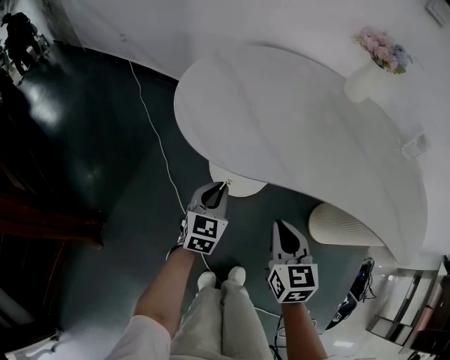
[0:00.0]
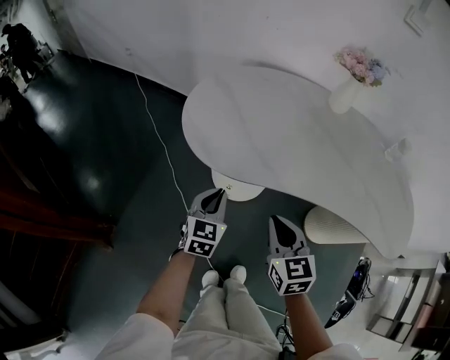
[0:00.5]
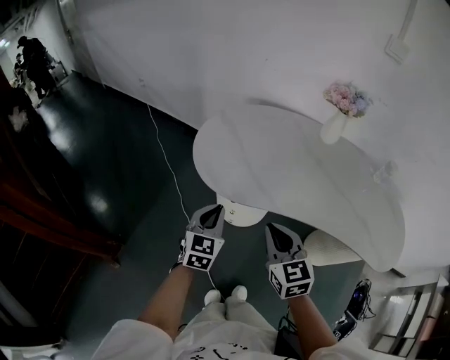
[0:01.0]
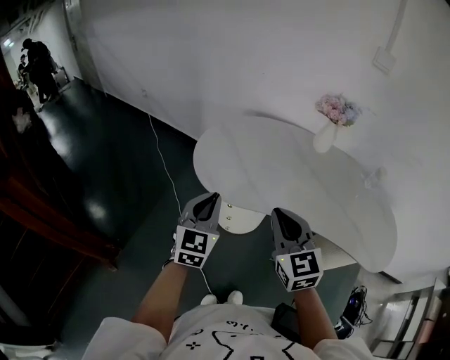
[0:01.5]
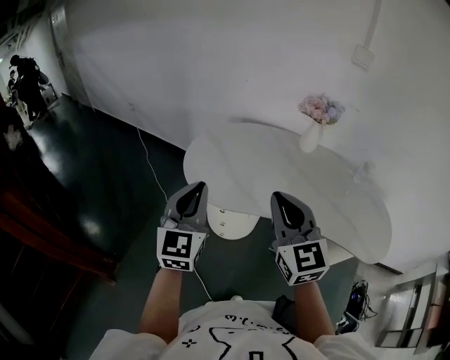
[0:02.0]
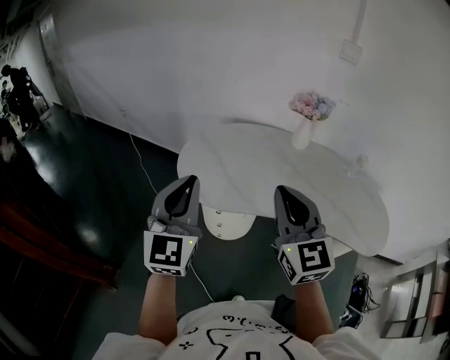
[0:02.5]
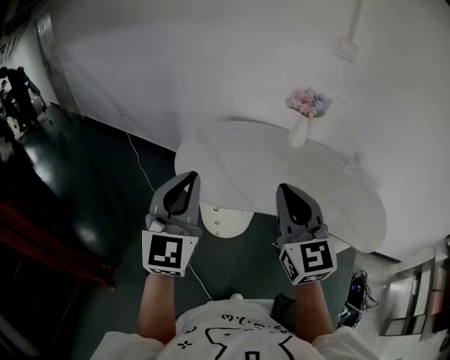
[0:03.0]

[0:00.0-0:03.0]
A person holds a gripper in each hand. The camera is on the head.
0.0 to 1.5 s: The grippers both shift upward by approximately 30 cm. The right gripper changes its angle by roughly 20 degrees.
1.5 to 3.0 s: The two grippers go some 15 cm upward.

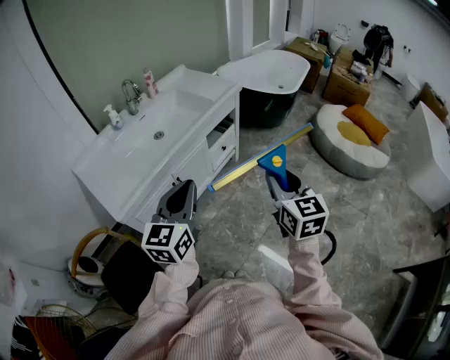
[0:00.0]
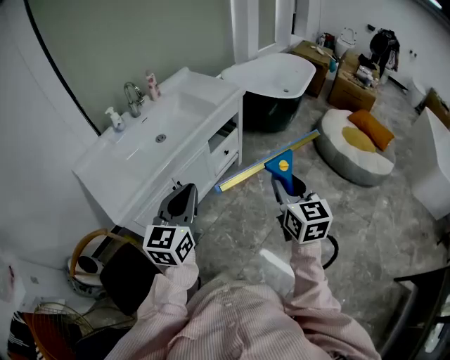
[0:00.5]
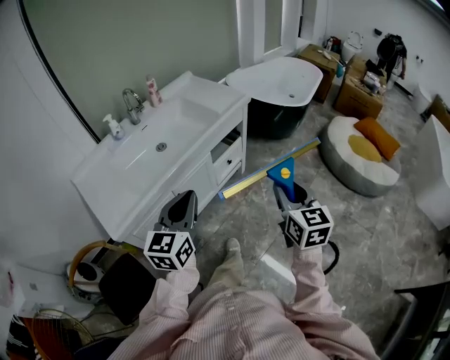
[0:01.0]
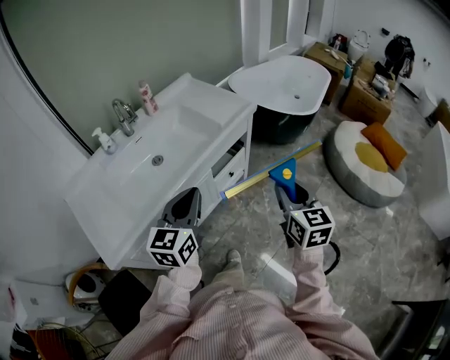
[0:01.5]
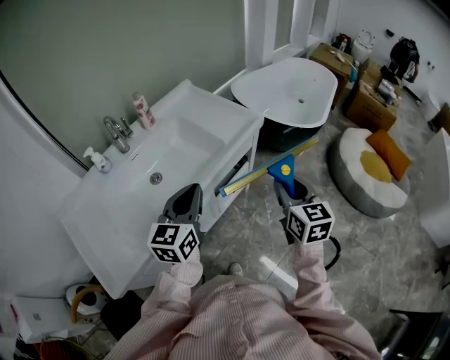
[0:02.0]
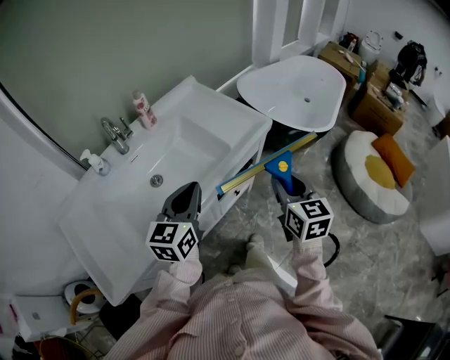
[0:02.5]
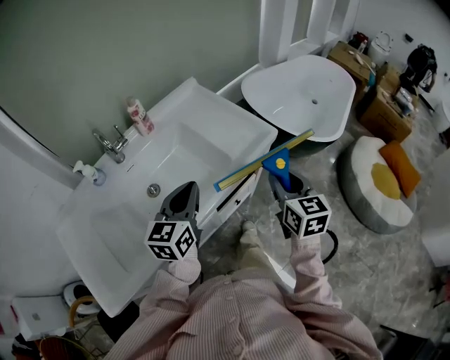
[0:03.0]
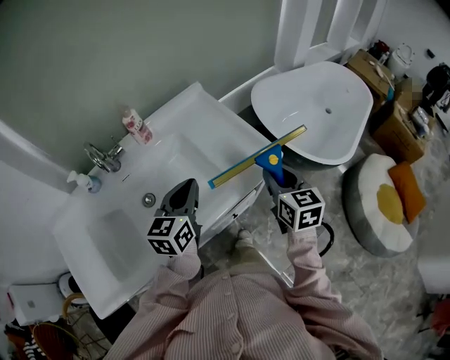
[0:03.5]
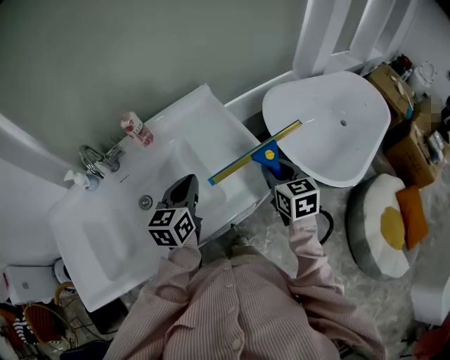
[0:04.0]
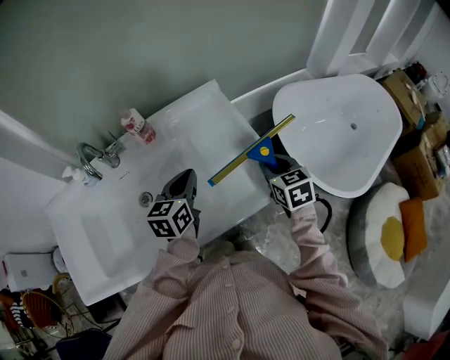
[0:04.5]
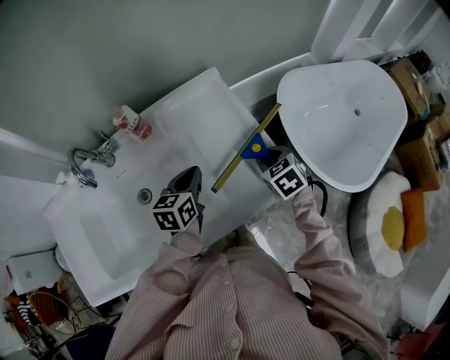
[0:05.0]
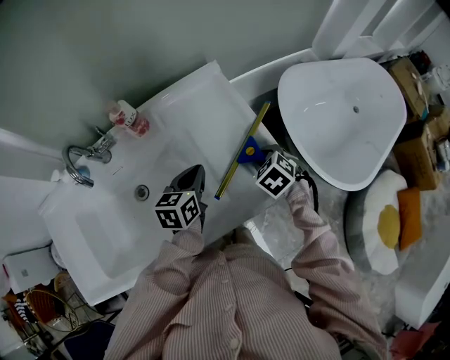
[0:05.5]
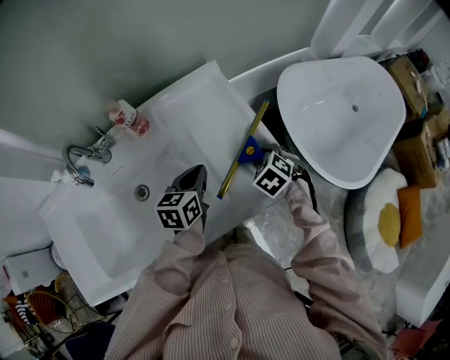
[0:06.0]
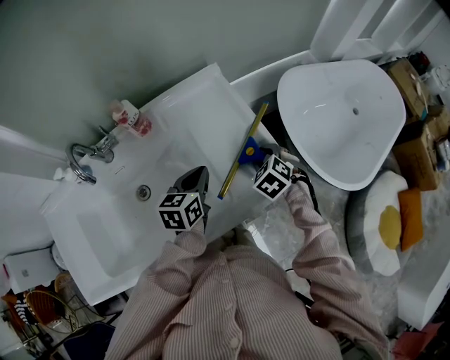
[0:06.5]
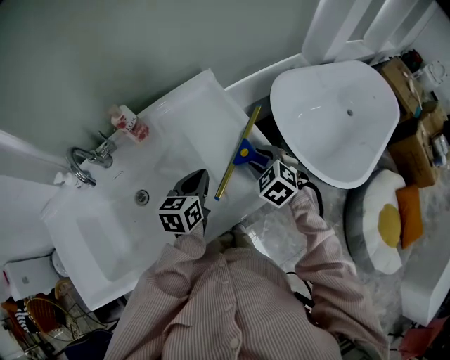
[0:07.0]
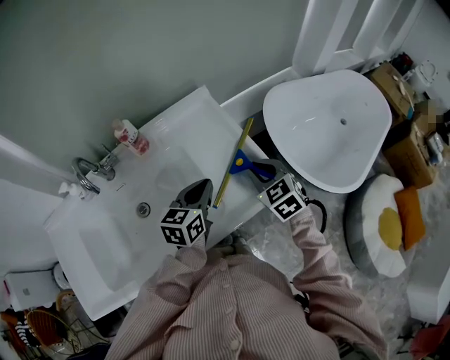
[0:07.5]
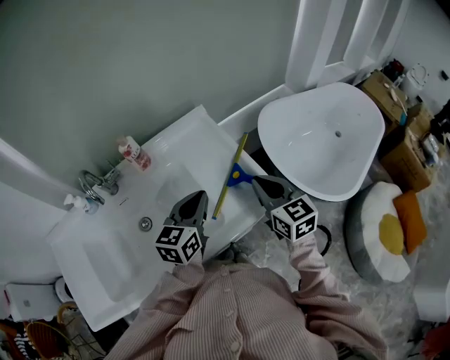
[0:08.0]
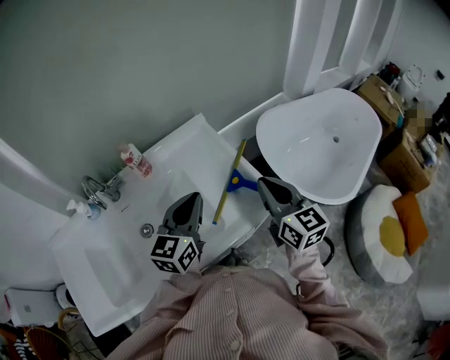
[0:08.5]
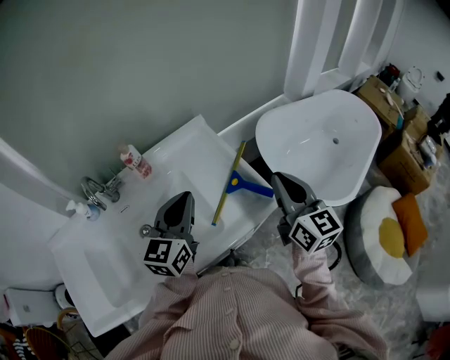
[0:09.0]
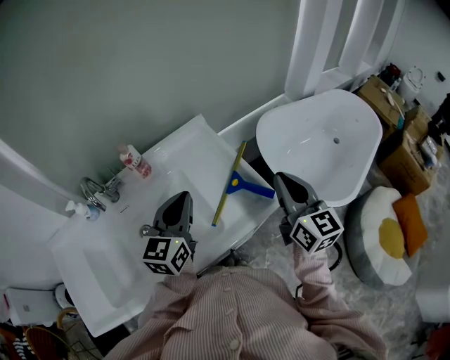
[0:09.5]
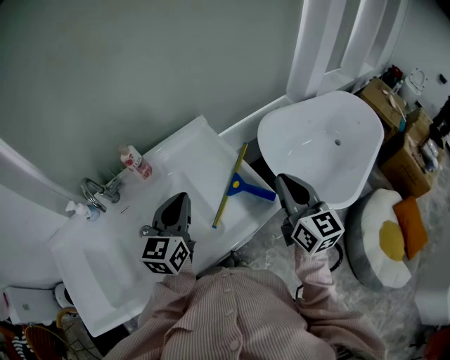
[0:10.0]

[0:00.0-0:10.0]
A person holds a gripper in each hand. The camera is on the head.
0.0 to 2.0 s: Both grippers travel together forward, approximately 35 cm.
2.0 to 4.0 s: The grippers both shift forward by about 35 cm. The right gripper turns by some 30 degrees, while the left gripper rotates some 20 degrees.
4.0 to 6.0 s: Both grippers move downward and forward, approximately 15 cm. The right gripper tilts its fingers approximately 40 degrees downward.
6.0 to 8.0 s: The right gripper moves upward, some 20 cm, tips its fingers upward by some 50 degrees, and closes its fingers. Meanwhile the left gripper goes approximately 15 cm upward and backward, and changes its angle by about 20 degrees.
8.0 to 10.0 s: The right gripper goes some 10 cm upward and to the right; the left gripper is displaced upward by about 5 cm.

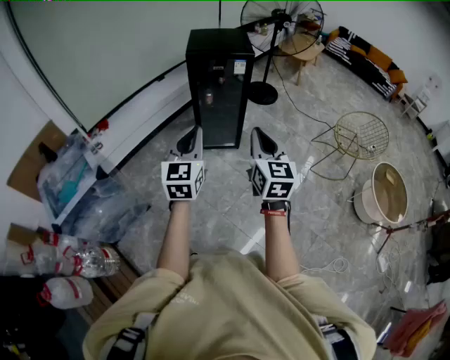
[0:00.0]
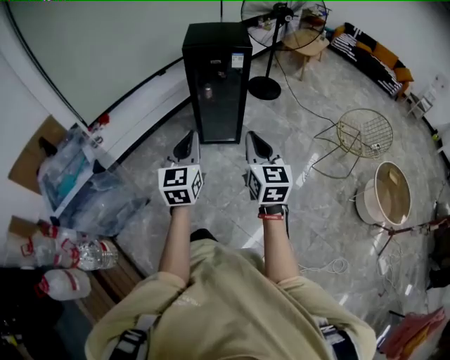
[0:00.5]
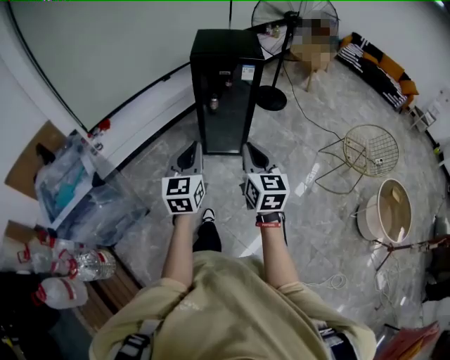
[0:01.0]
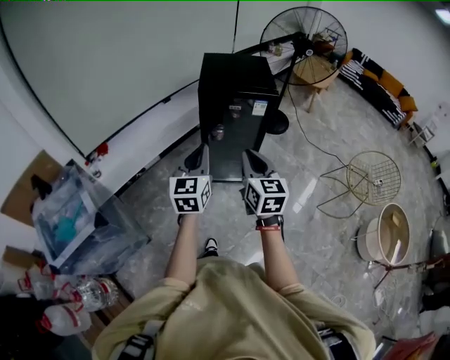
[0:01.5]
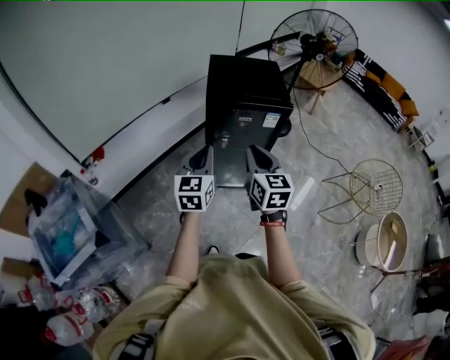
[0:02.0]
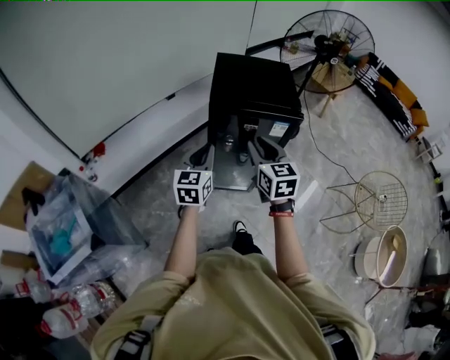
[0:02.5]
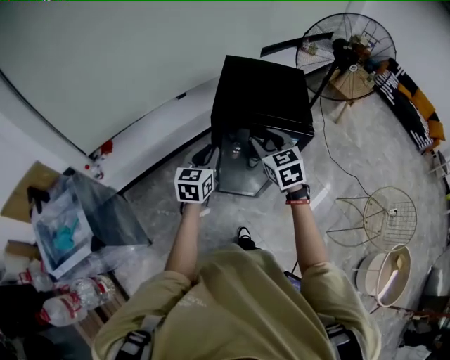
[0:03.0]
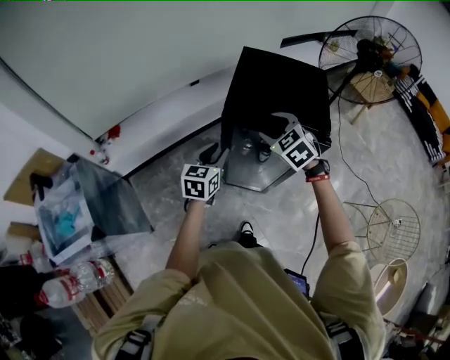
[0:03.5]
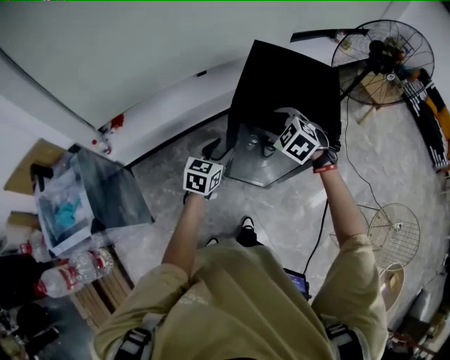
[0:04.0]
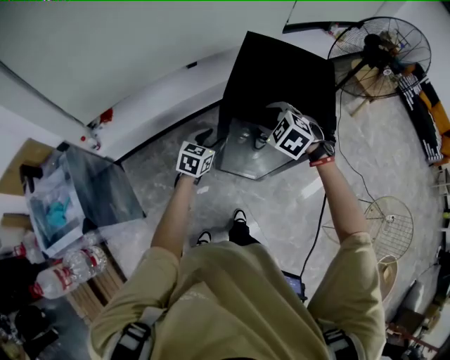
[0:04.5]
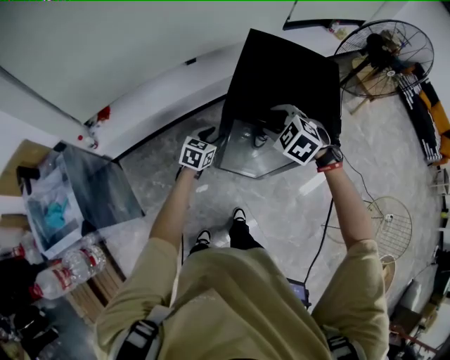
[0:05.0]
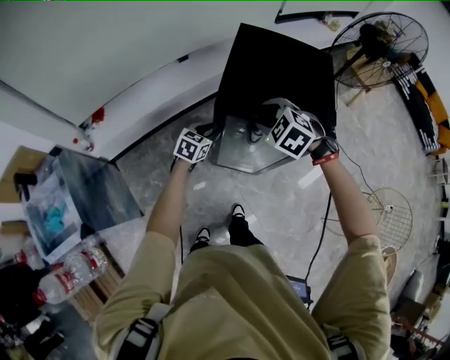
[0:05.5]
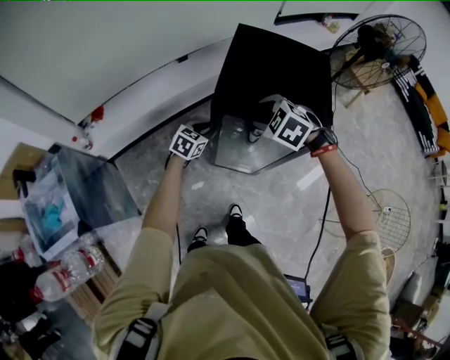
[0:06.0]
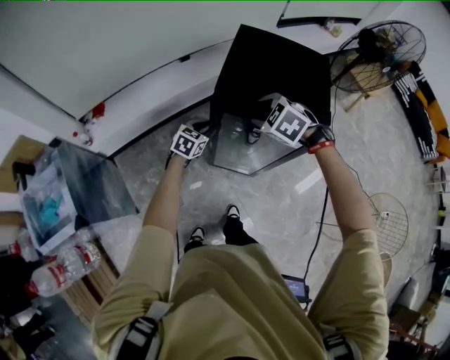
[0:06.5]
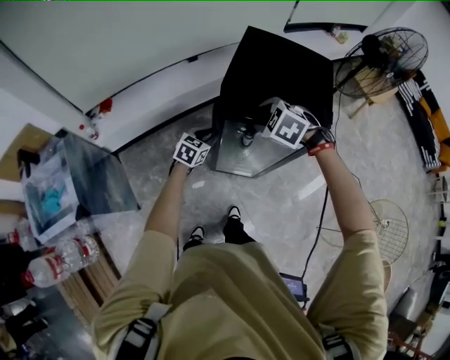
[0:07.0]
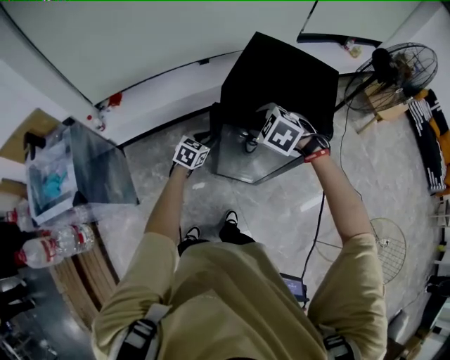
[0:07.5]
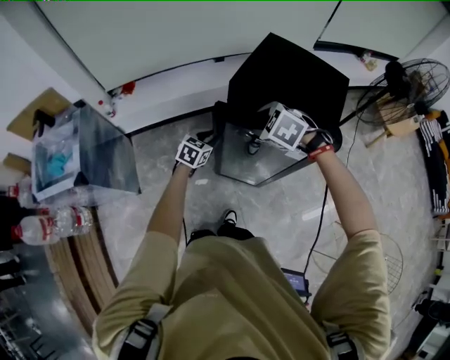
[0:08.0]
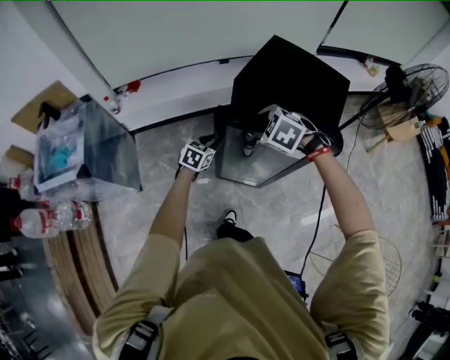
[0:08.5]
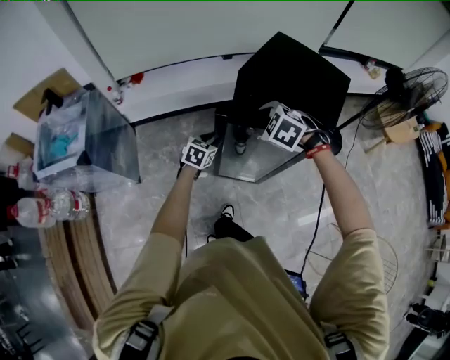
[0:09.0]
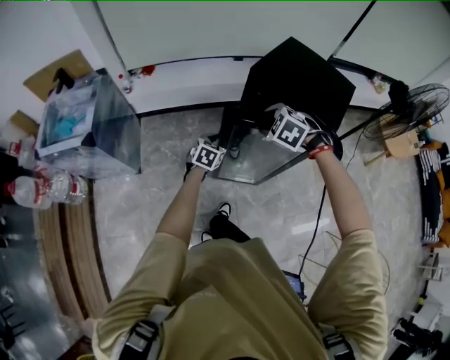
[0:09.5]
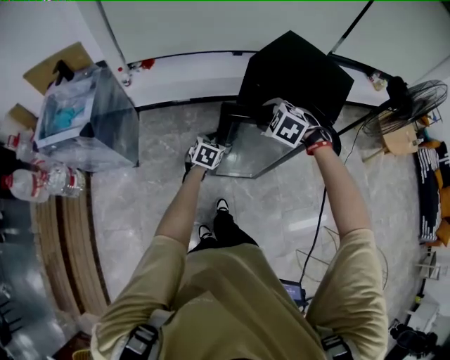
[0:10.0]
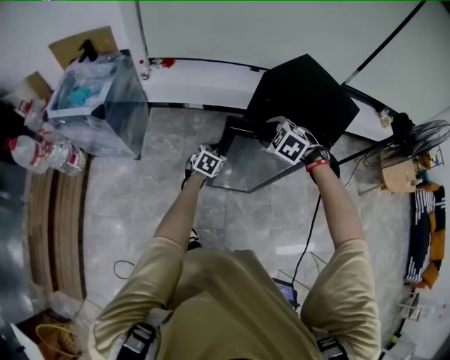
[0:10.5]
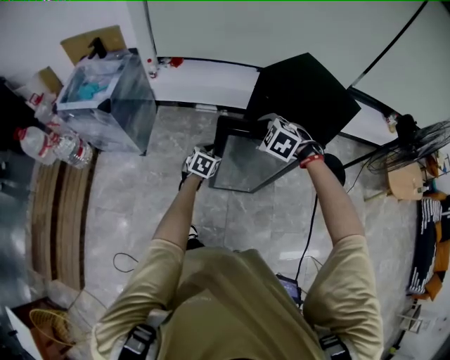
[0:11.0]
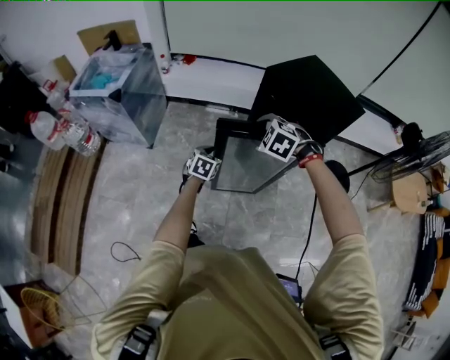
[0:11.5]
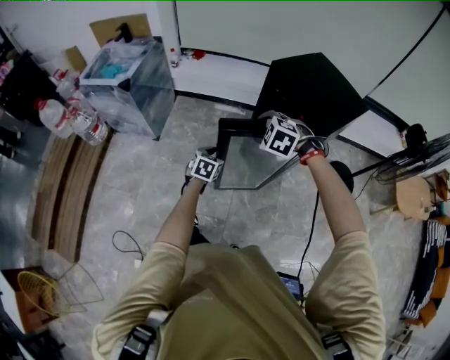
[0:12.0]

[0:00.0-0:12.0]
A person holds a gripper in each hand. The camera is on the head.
0.0 to 2.0 s: Both grippers move forward, about 40 cm.
2.0 to 4.0 s: The left gripper shifts roughly 25 cm forward and downward, and opens up; the right gripper shifts roughly 30 cm forward, angles its fingers downward, by approximately 40 degrees, and opens its fingers.
4.0 to 6.0 s: The left gripper moves downward and forward, approximately 15 cm, turns by about 20 degrees, and closes.
6.0 to 8.0 s: The grippers both shift backward by some 5 cm.
8.0 to 10.0 s: The two grippers go approximately 10 cm backward.
10.0 to 12.0 s: The grippers both shift backward by roughly 15 cm. The right gripper rotates some 20 degrees. The left gripper swivels some 20 degrees.

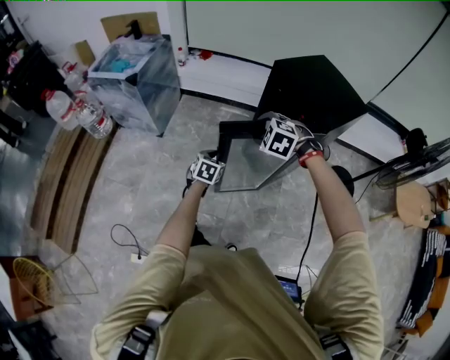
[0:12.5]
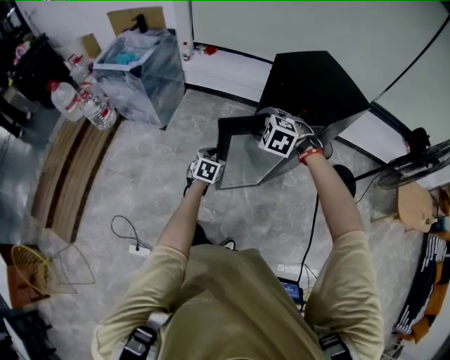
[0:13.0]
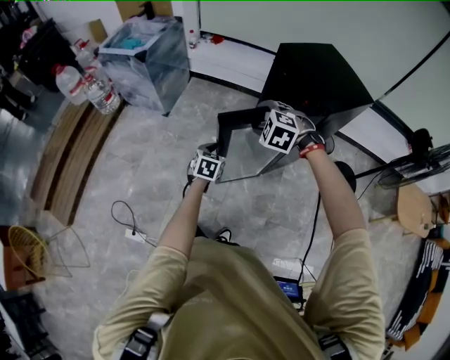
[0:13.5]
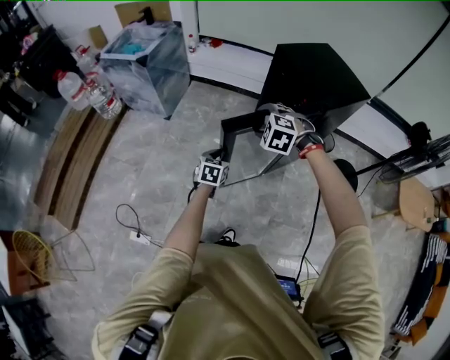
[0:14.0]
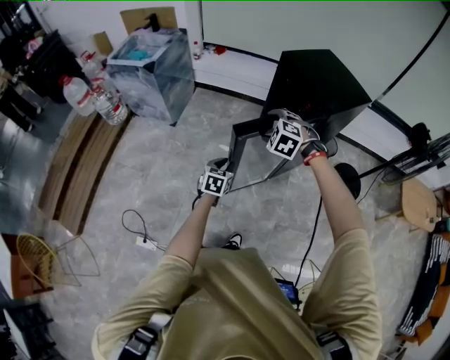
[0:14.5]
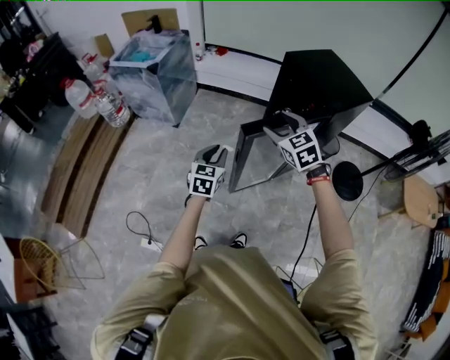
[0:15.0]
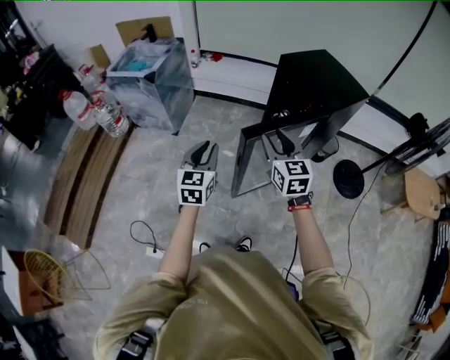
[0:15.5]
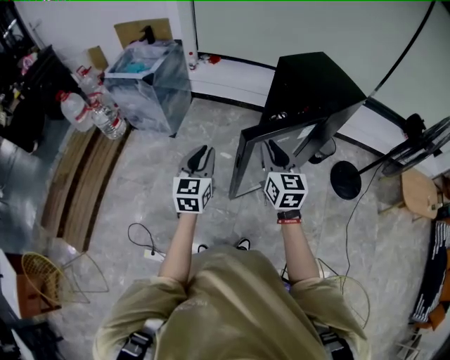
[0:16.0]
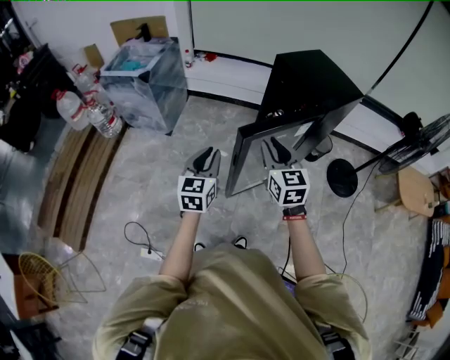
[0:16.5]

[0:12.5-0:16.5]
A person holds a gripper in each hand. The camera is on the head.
12.5 to 14.5 s: The right gripper is displaced backward by roughly 10 cm, while the left gripper moves backward, about 15 cm.
14.5 to 16.5 s: The left gripper is displaced upward and to the left by about 20 cm, and rotates roughly 30 degrees. The right gripper travels upward and backward by roughly 15 cm, tips its fingers upward by approximately 40 degrees, and closes its fingers.
